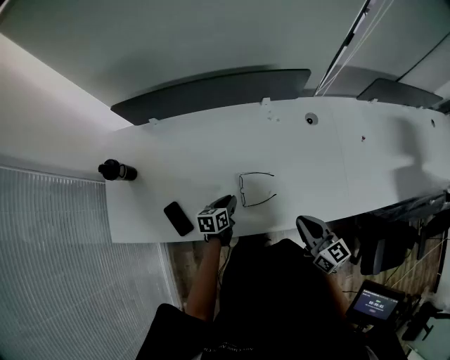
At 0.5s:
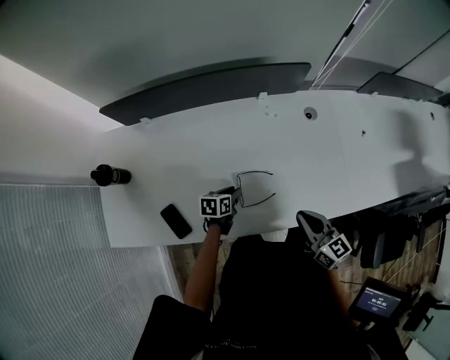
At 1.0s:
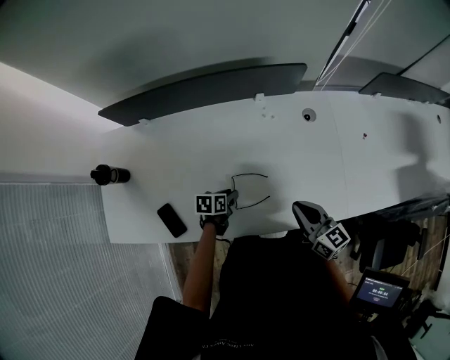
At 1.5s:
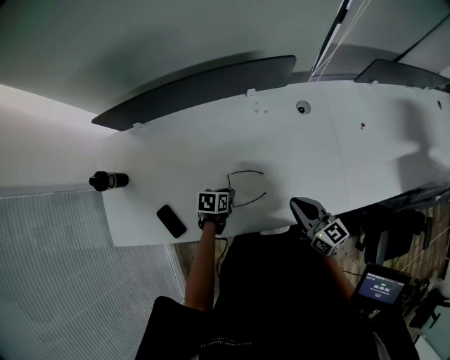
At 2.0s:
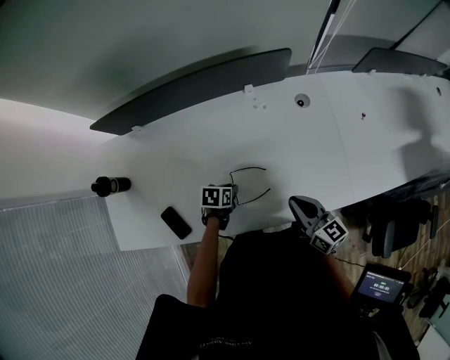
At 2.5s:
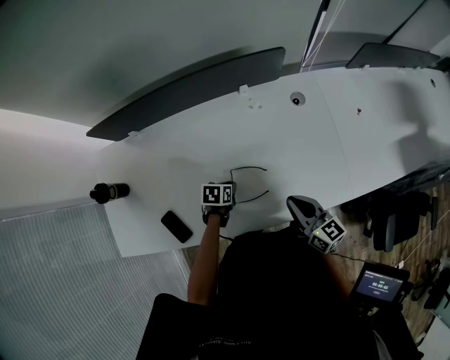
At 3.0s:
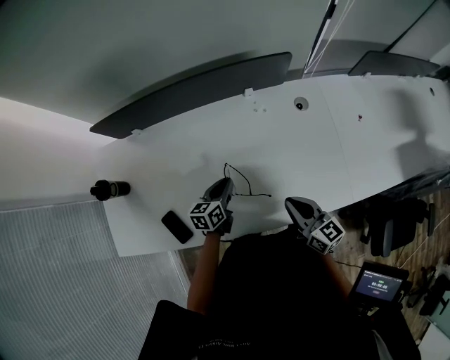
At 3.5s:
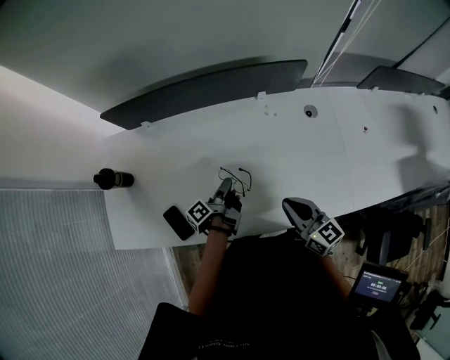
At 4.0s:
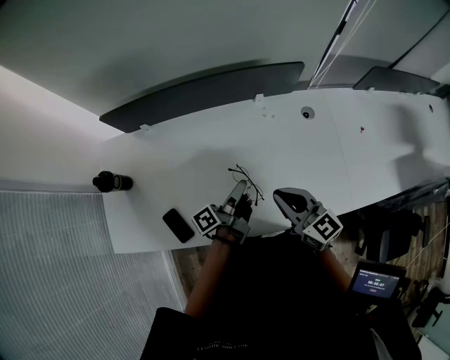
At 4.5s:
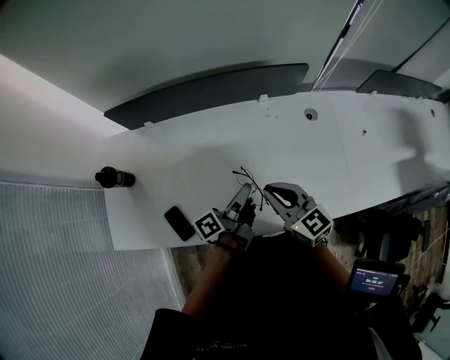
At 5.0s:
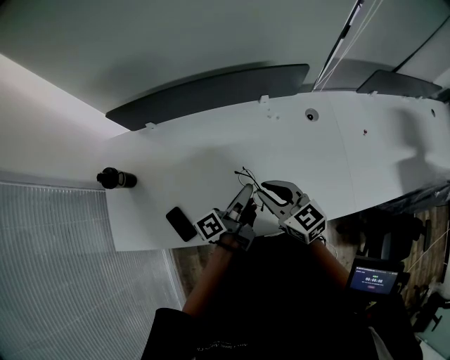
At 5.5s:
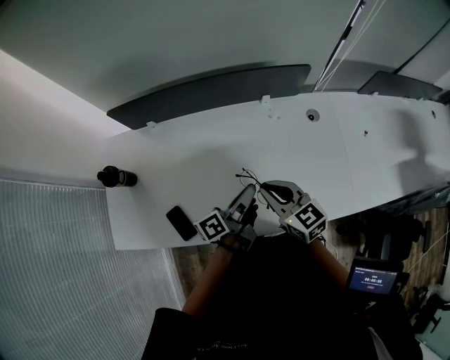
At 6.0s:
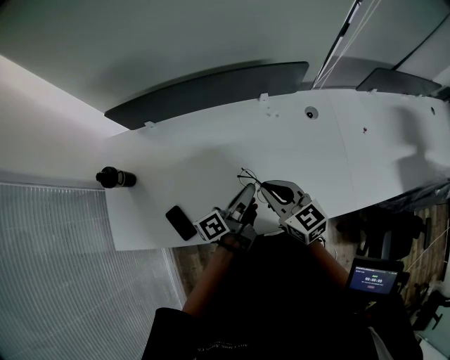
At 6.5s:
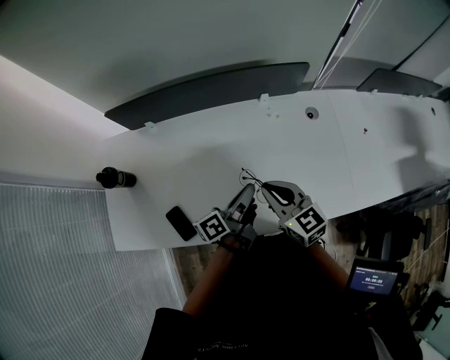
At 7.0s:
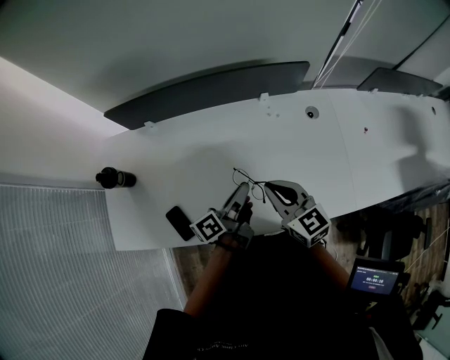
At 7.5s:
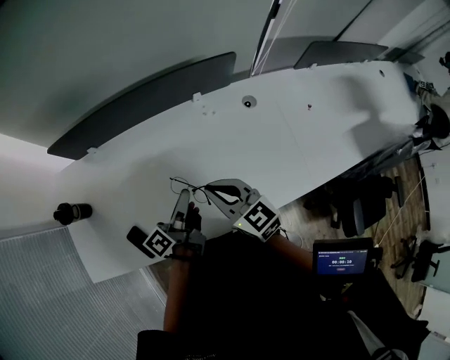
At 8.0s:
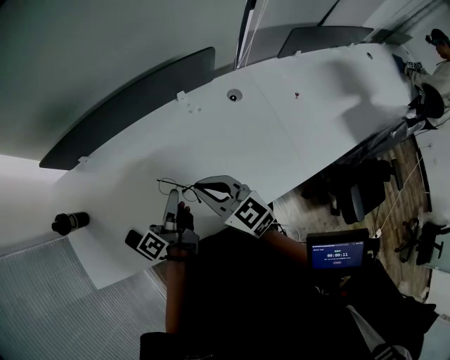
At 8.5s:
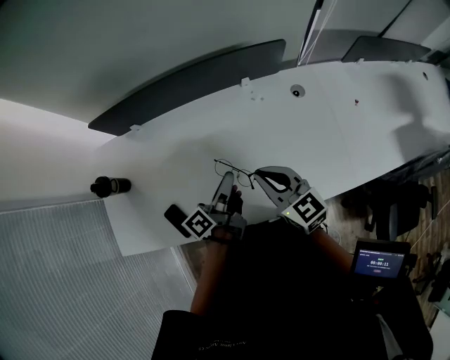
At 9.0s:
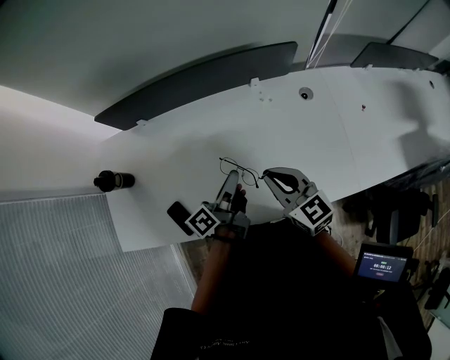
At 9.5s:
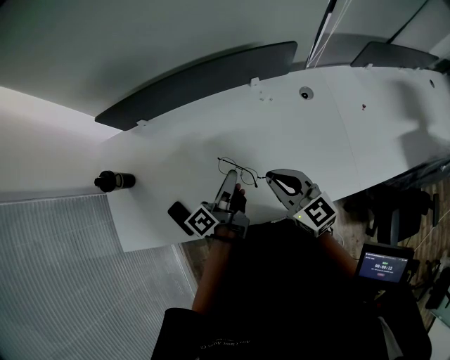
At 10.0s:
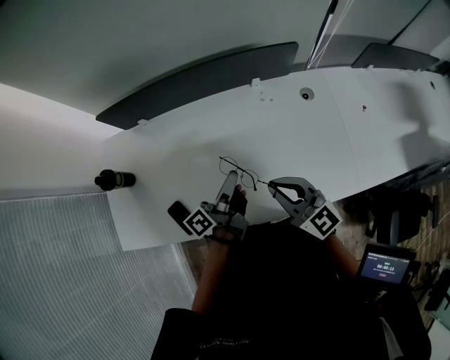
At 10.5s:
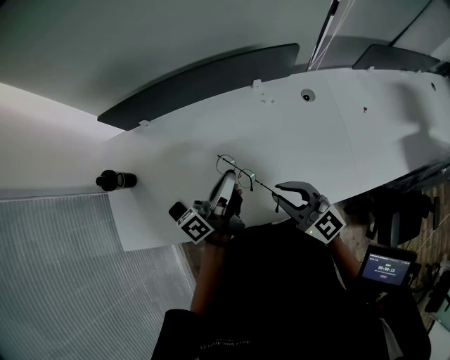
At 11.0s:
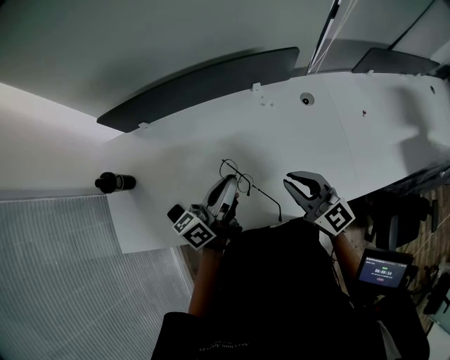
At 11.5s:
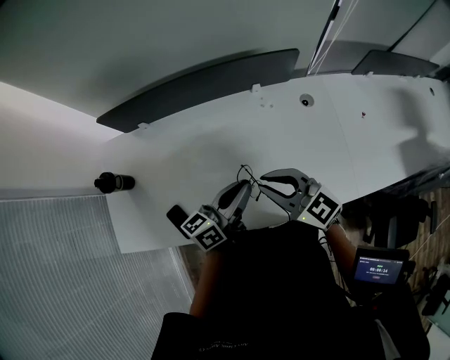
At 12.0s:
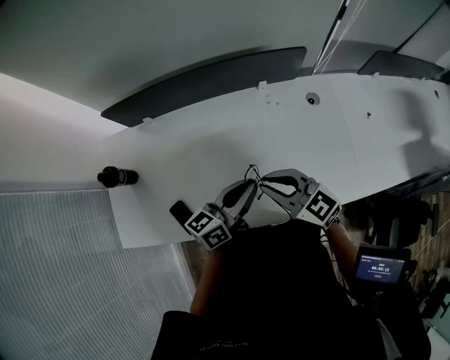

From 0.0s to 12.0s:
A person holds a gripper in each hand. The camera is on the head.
From 0.0s to 2.0s: The grippers both shift forward by approximately 5 cm. The left gripper turns by some 30 degrees.
From 2.0s to 4.0s: The right gripper is displaced to the left and upward by about 15 cm. The left gripper goes about 15 cm upward, and tilts its fingers about 60 degrees upward.
From 4.0s to 6.0s: The left gripper shifts by about 5 cm.
From 6.0s to 10.0s: The grippers make only small movements.
From 10.0s to 12.0s: The left gripper shifts by roughly 5 cm, and rotates some 40 degrees.

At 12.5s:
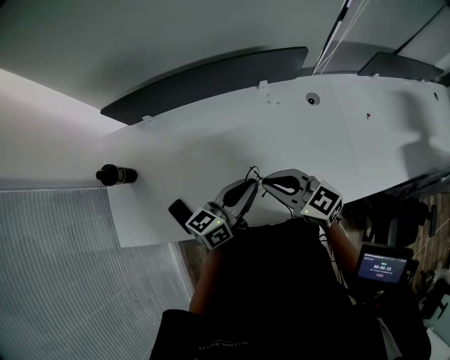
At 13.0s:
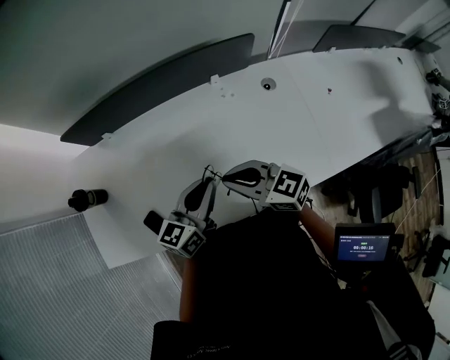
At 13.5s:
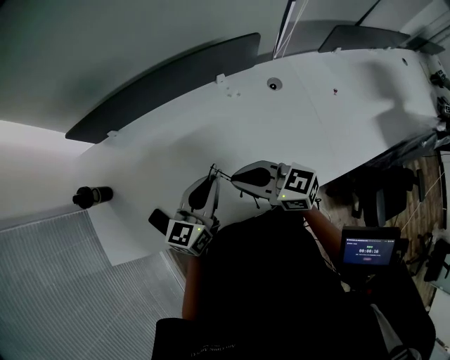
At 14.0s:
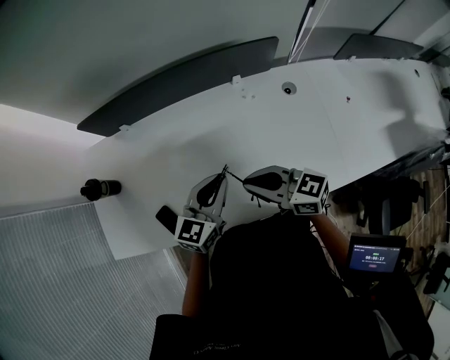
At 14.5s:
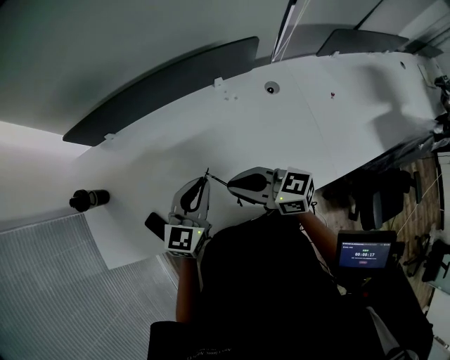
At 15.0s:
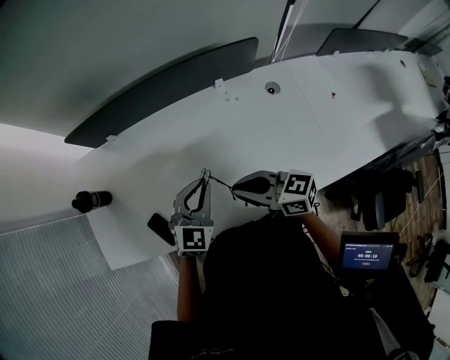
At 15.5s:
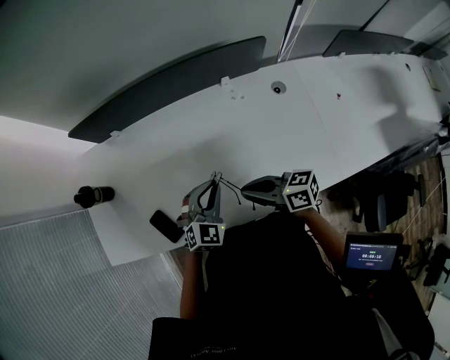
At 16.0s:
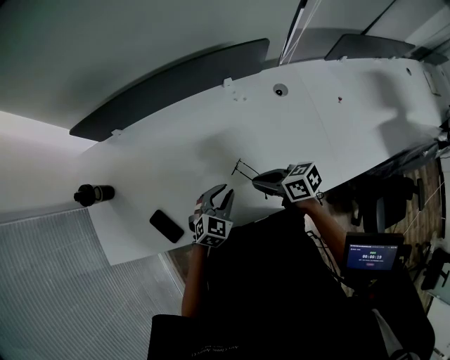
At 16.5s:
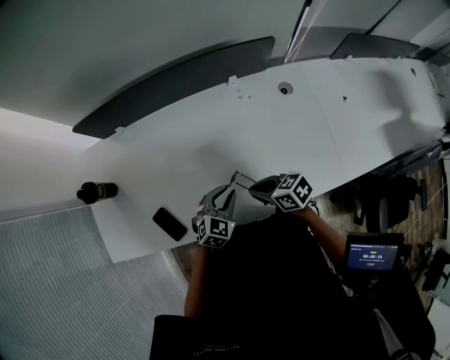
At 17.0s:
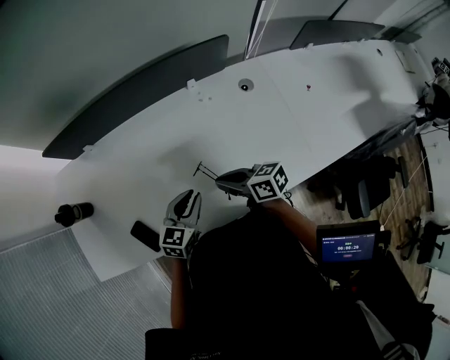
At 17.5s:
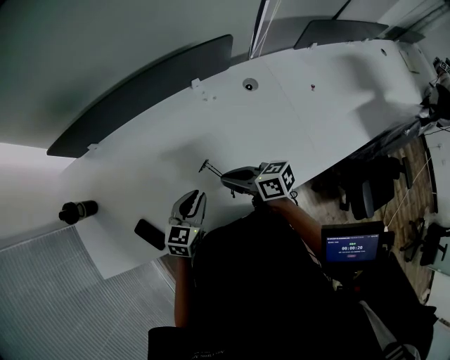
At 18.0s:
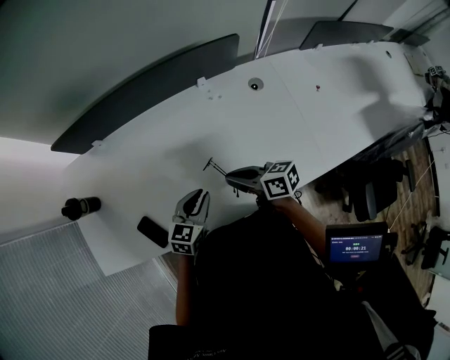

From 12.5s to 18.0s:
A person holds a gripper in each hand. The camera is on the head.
From 12.5s to 14.5s: The left gripper rotates about 40 degrees.
From 14.5s to 16.0s: Both grippers move downward, roughly 15 cm. The right gripper rotates some 30 degrees. Meanwhile the left gripper swivels some 30 degrees.
From 16.0s to 18.0s: The left gripper swivels approximately 20 degrees.

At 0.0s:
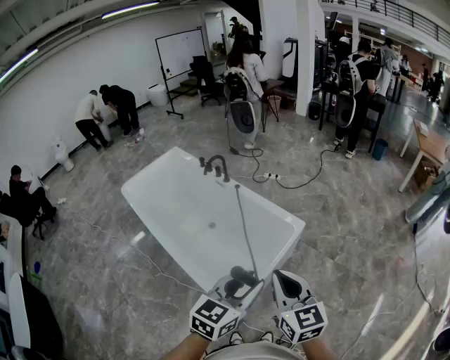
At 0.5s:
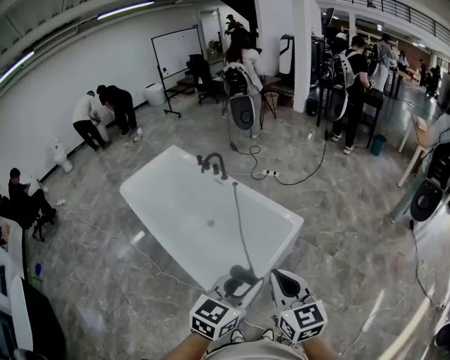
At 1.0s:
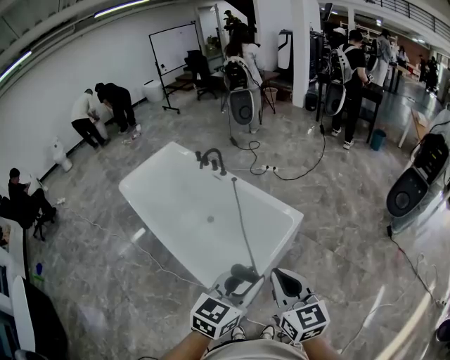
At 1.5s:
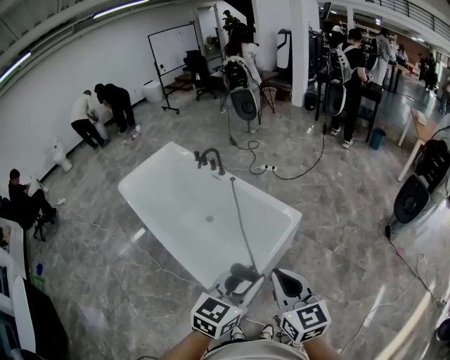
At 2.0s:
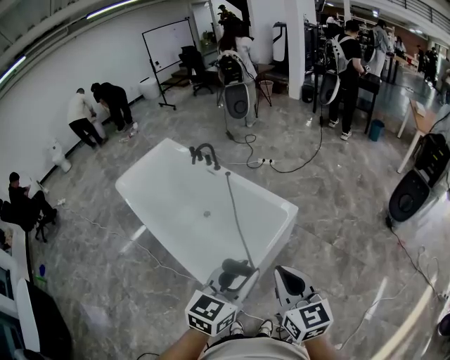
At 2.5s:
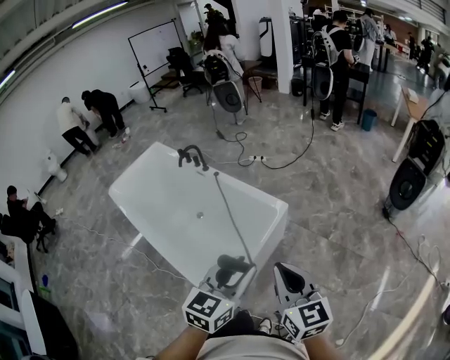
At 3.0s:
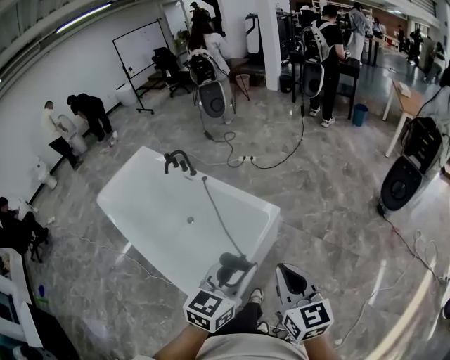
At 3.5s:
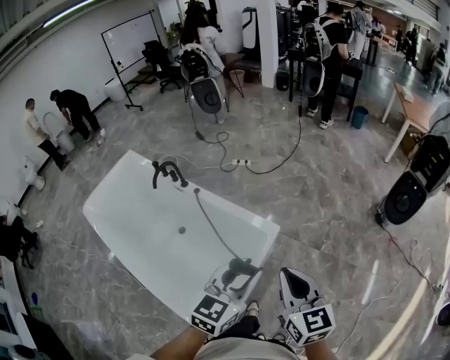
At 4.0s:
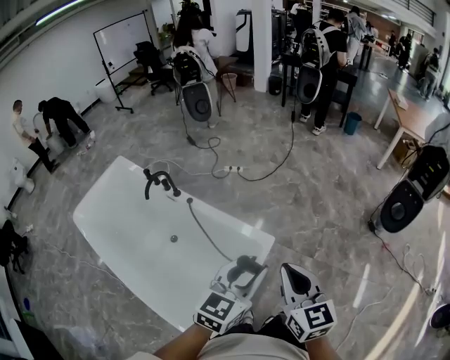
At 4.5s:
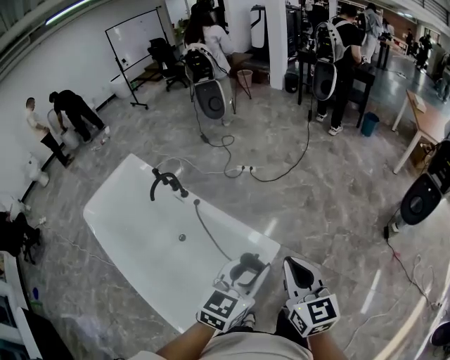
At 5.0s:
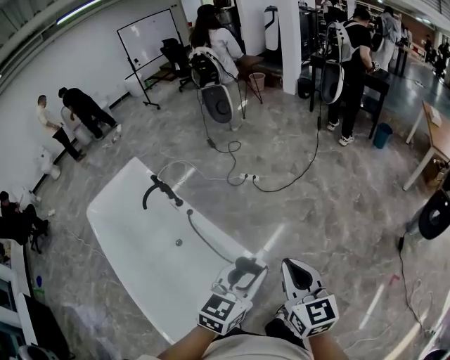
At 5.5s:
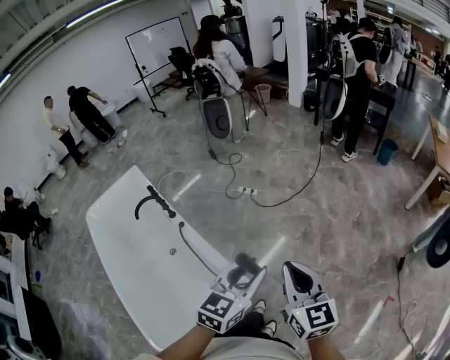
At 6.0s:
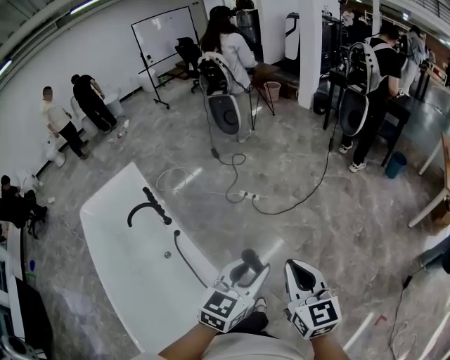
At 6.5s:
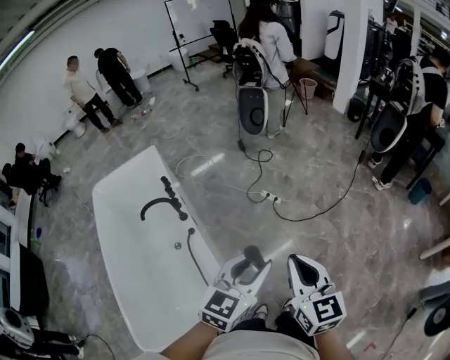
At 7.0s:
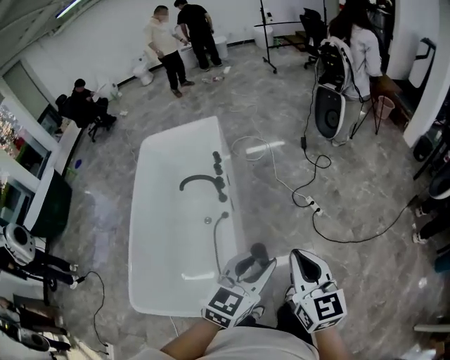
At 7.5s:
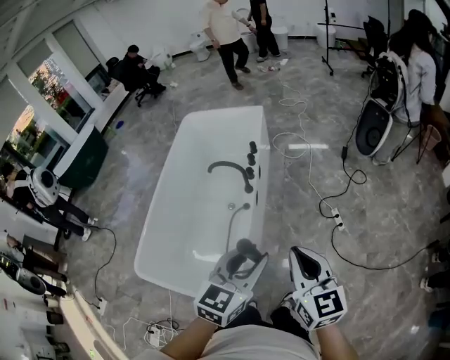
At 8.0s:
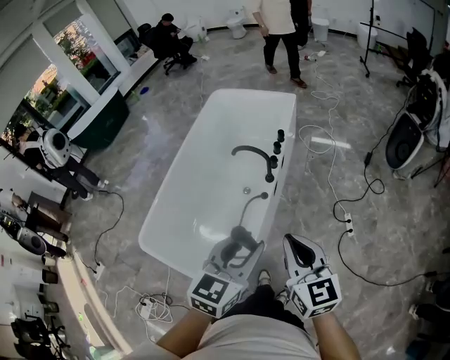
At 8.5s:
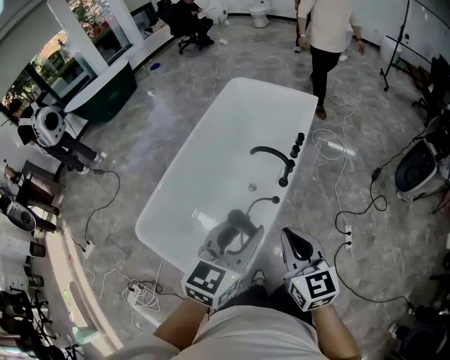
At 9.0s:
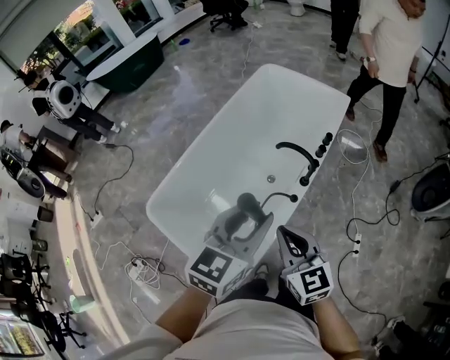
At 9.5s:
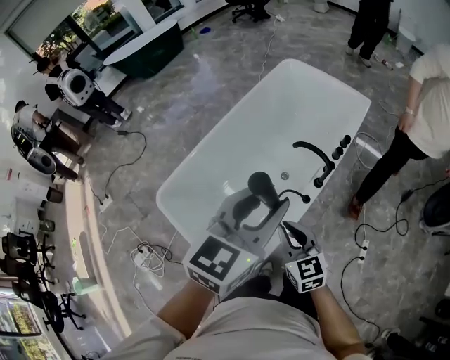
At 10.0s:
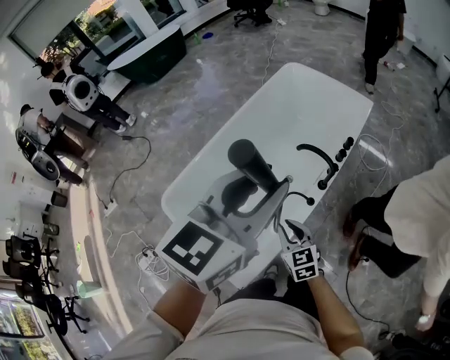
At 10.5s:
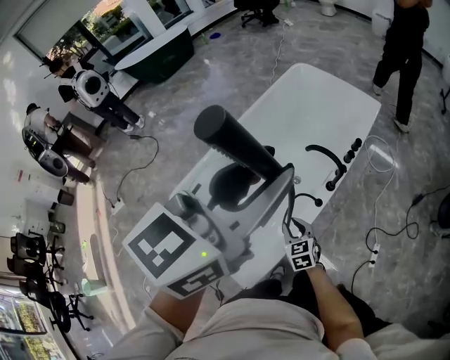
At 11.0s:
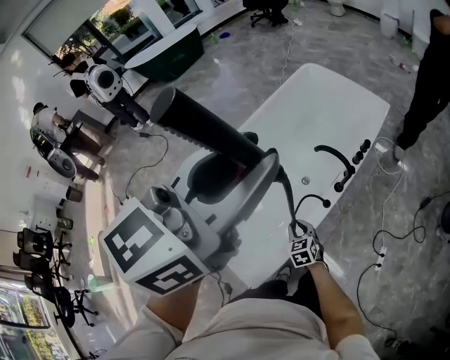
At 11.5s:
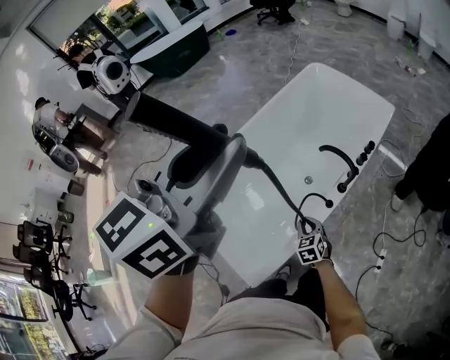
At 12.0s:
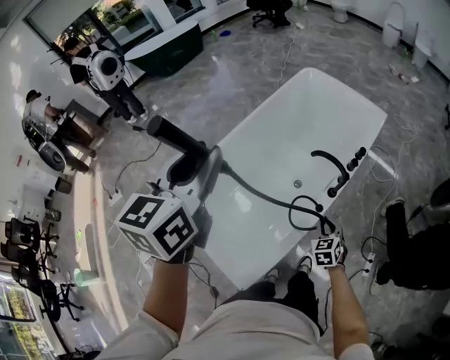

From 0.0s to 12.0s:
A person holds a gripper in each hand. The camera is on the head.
From 0.0s to 2.0s: The right gripper heads to the right, covering roughly 5 cm.
From 2.0s to 4.0s: Both grippers move forward, roughly 25 cm.
From 4.0s to 6.0s: The grippers both shift forward and to the right by roughly 40 cm.
From 6.0s to 8.0s: The left gripper moves roughly 25 cm, and changes its angle by some 70 degrees, while the right gripper moves roughly 30 cm, and rotates some 70 degrees.
From 8.0s to 10.0s: The right gripper heads downward, to the left and forward, covering roughly 30 cm, and swivels roughly 30 degrees, while the left gripper travels forward, upward and to the left by roughly 25 cm.
From 10.0s to 12.0s: The left gripper travels to the left by about 15 cm, and turns by approximately 20 degrees. Meanwhile the right gripper shifts about 15 cm to the right, downward and forward, and swivels some 30 degrees.
